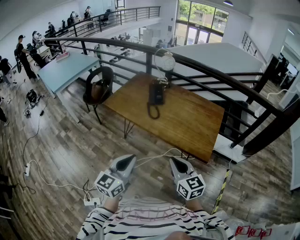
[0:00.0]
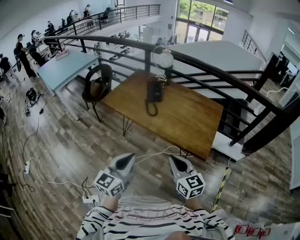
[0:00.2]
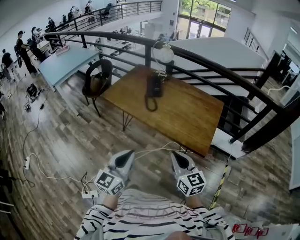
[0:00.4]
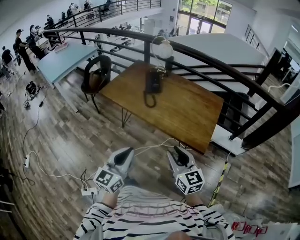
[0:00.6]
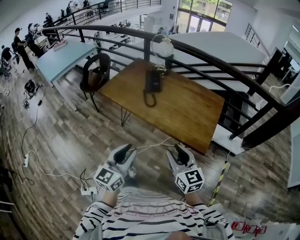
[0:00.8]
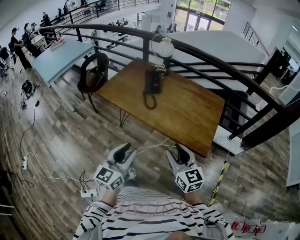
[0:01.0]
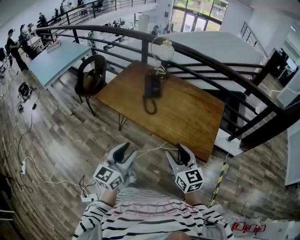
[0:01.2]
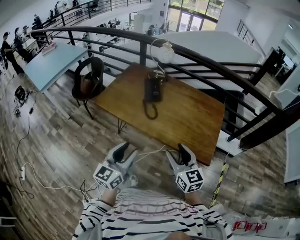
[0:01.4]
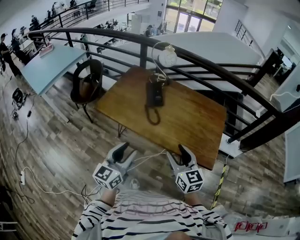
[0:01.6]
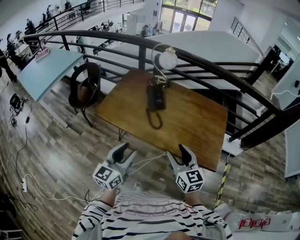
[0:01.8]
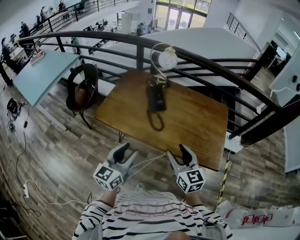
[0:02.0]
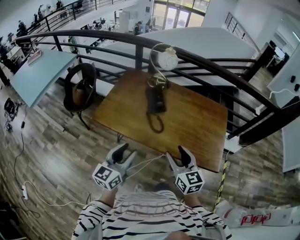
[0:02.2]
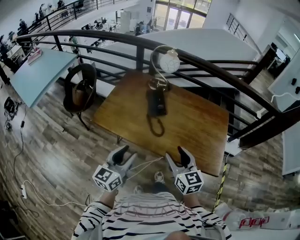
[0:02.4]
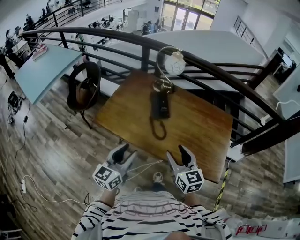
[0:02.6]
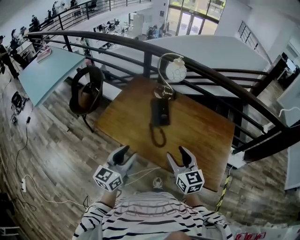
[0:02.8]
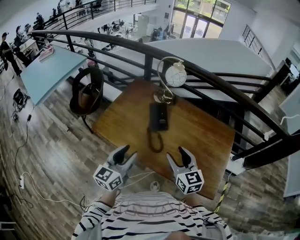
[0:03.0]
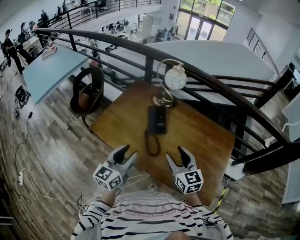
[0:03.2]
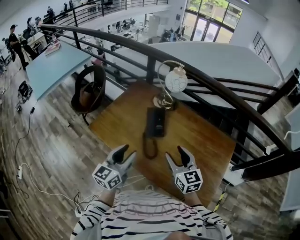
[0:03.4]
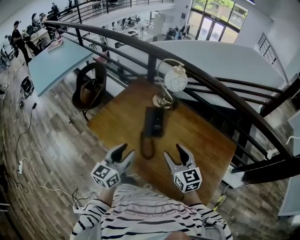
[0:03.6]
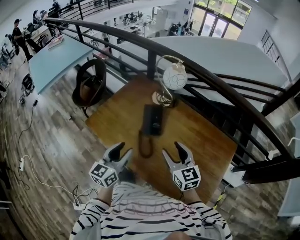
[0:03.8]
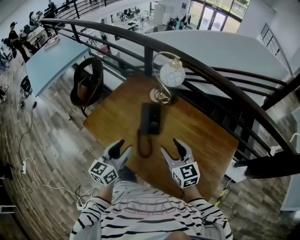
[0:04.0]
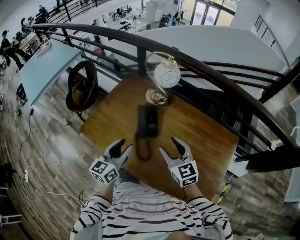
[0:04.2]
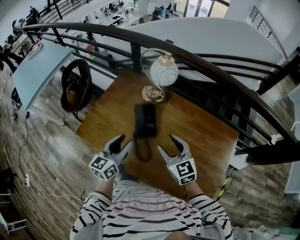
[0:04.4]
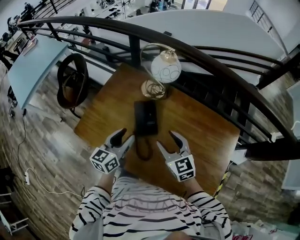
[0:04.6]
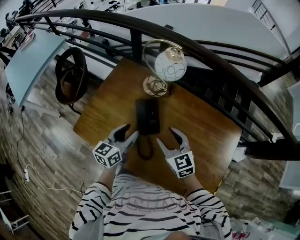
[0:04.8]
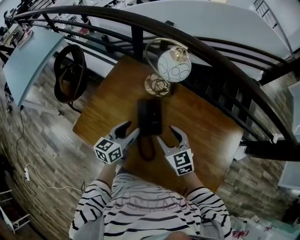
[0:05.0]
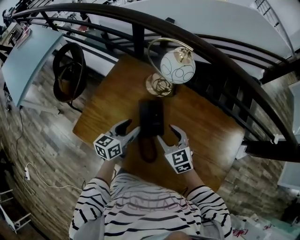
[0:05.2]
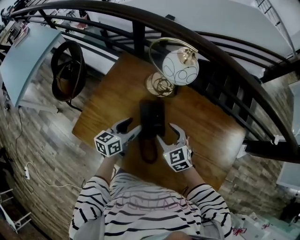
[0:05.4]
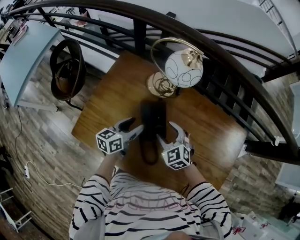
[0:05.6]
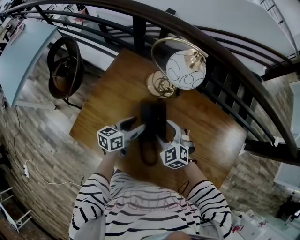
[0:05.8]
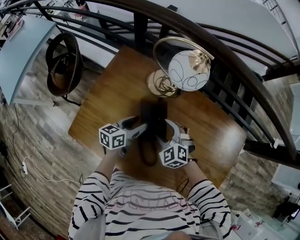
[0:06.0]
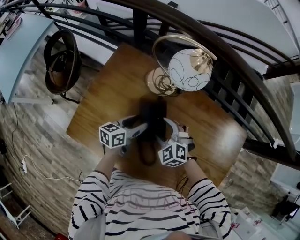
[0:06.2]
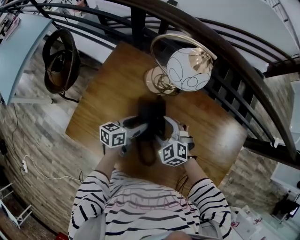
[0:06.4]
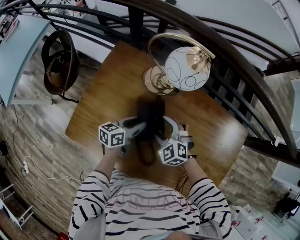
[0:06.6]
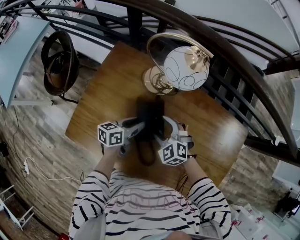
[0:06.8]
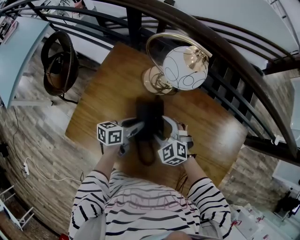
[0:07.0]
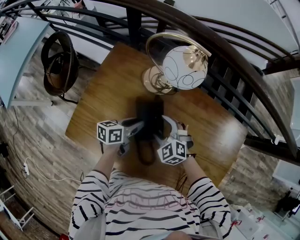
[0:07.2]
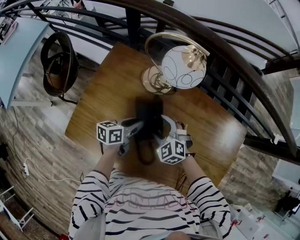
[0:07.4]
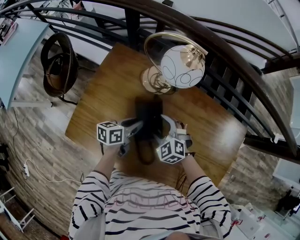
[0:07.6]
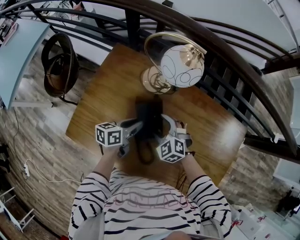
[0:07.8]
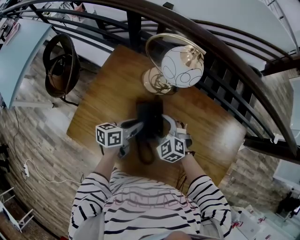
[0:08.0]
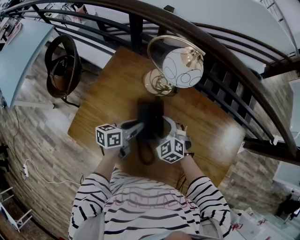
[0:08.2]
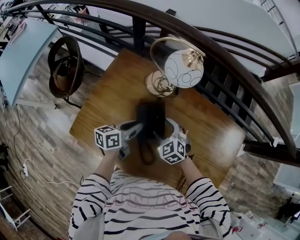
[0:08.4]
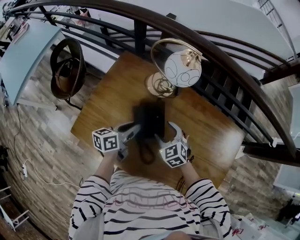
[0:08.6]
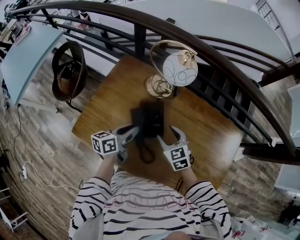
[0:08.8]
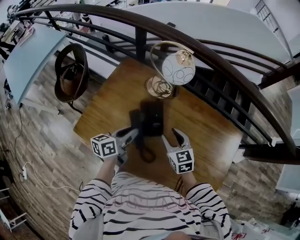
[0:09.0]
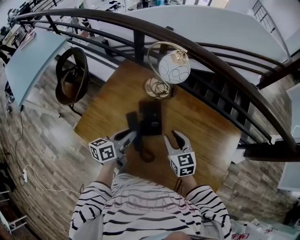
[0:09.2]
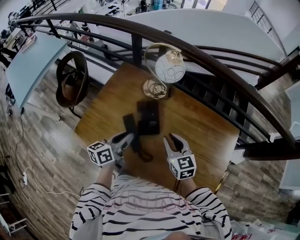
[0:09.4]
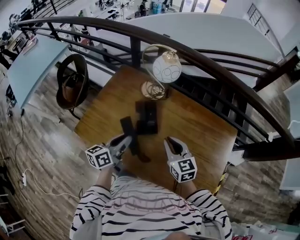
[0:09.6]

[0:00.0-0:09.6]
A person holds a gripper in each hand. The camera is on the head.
0:00.0 to 0:01.6: Both grippers move forward, some 20 cm. The right gripper opens; the left gripper opens.
0:01.6 to 0:03.2: The grippers both shift forward by roughly 25 cm.
0:03.2 to 0:04.8: The two grippers go some 20 cm forward and downward.
0:04.8 to 0:06.4: The left gripper goes roughly 20 cm downward and forward, and turns by roughly 30 degrees. Meanwhile the right gripper shifts about 20 cm downward, forward and to the left, and changes its angle by approximately 40 degrees.
0:06.4 to 0:08.0: The left gripper closes up.
0:08.0 to 0:09.6: The left gripper travels backward and upward by approximately 20 cm, and rotates about 20 degrees, while the right gripper is displaced upward, backward and to the right by about 25 cm, changes its angle by roughly 50 degrees, and closes its fingers.

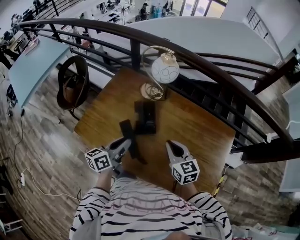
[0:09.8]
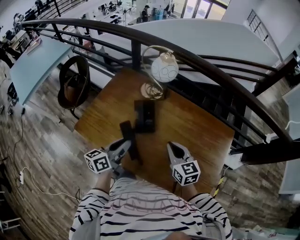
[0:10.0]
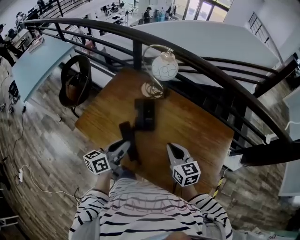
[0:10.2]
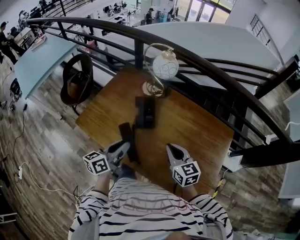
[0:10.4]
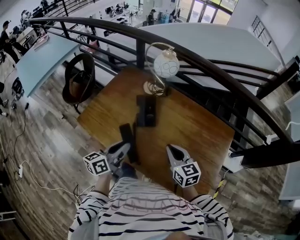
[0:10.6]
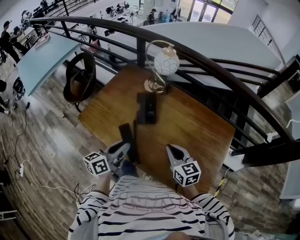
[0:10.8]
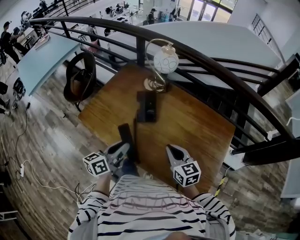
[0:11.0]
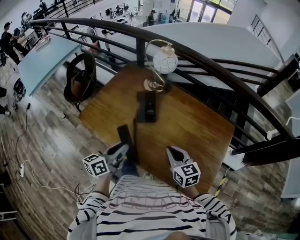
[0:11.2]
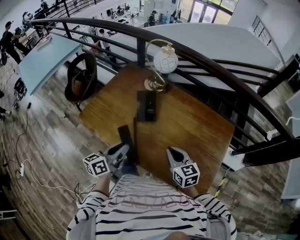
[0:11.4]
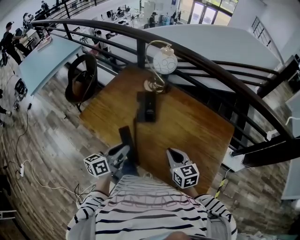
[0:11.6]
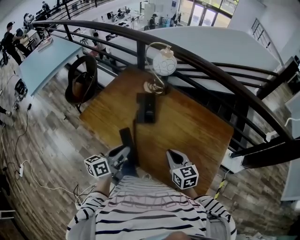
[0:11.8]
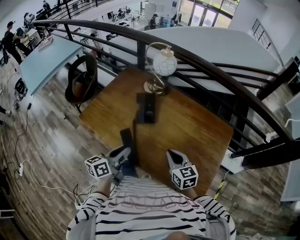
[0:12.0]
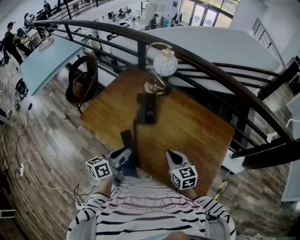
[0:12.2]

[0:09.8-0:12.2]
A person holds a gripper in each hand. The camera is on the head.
0:09.8 to 0:11.0: The two grippers go about 10 cm backward.
0:11.0 to 0:12.2: There are only small adjustments of the grippers.

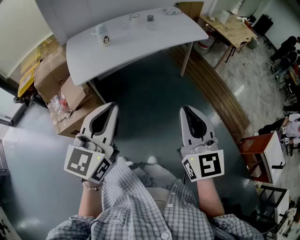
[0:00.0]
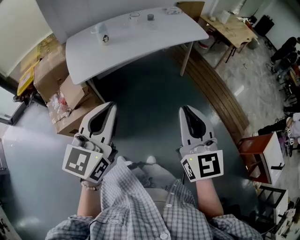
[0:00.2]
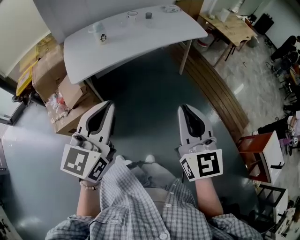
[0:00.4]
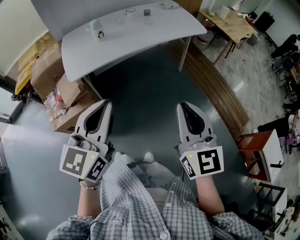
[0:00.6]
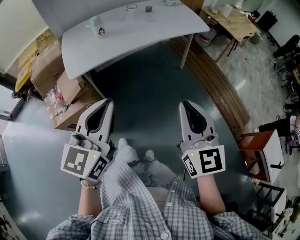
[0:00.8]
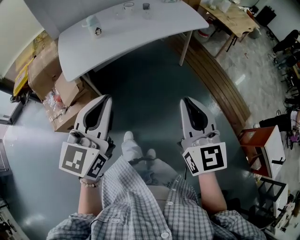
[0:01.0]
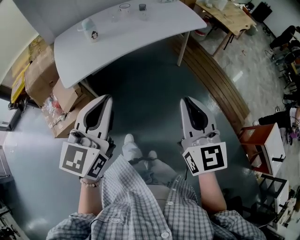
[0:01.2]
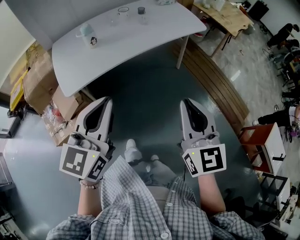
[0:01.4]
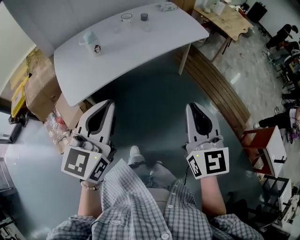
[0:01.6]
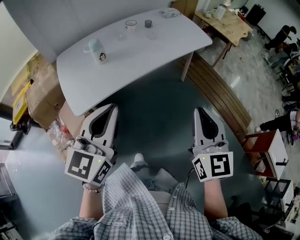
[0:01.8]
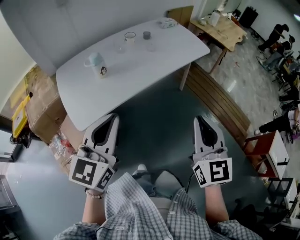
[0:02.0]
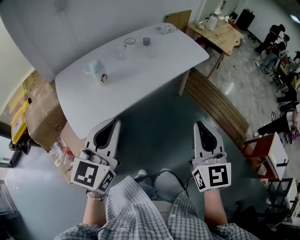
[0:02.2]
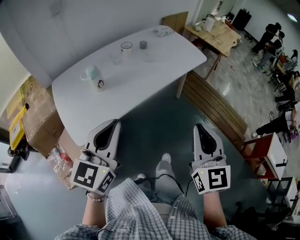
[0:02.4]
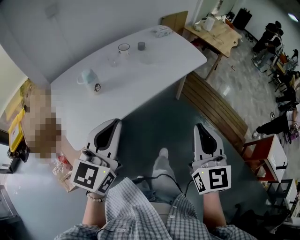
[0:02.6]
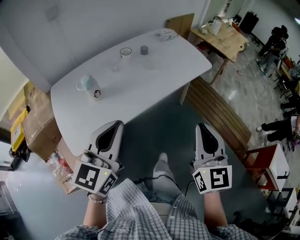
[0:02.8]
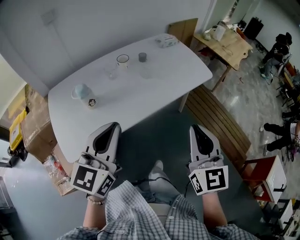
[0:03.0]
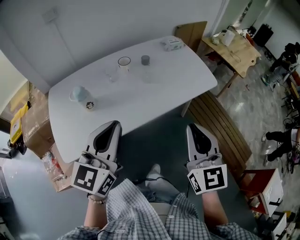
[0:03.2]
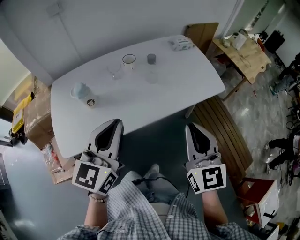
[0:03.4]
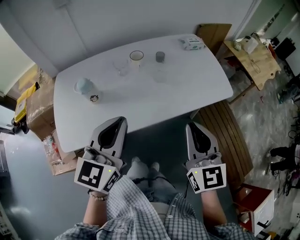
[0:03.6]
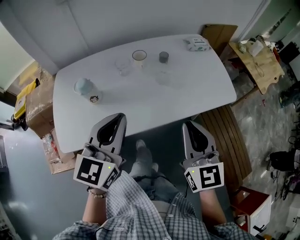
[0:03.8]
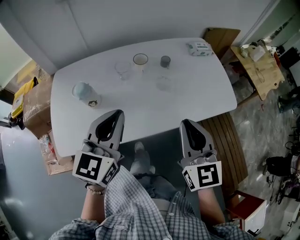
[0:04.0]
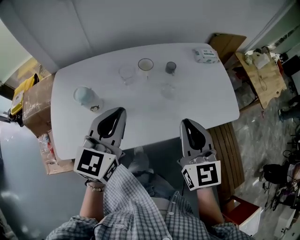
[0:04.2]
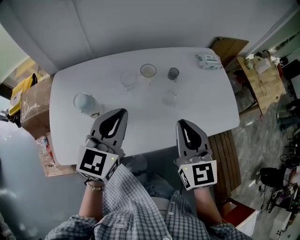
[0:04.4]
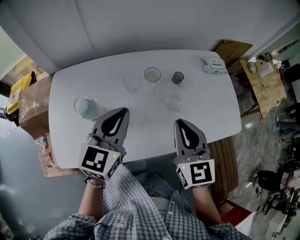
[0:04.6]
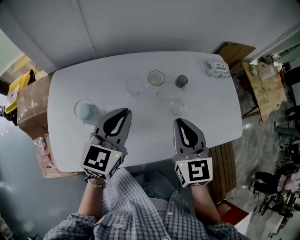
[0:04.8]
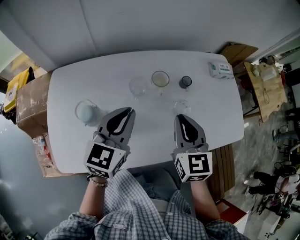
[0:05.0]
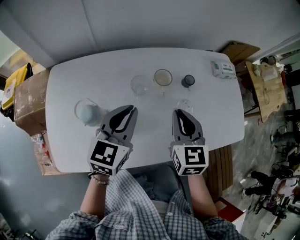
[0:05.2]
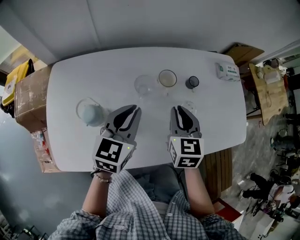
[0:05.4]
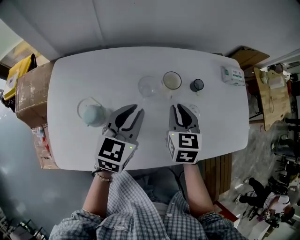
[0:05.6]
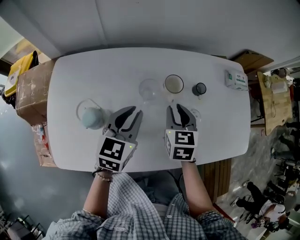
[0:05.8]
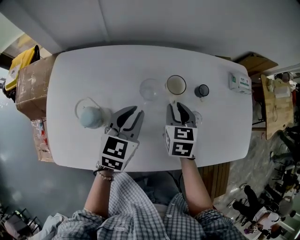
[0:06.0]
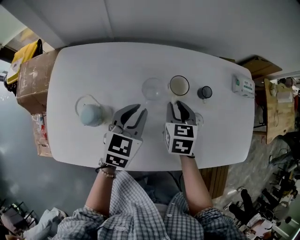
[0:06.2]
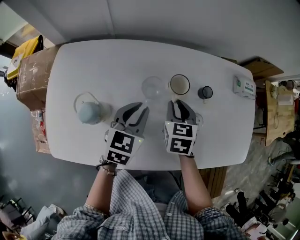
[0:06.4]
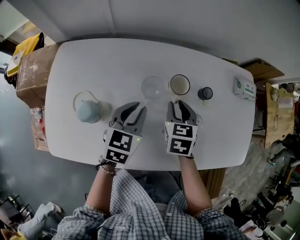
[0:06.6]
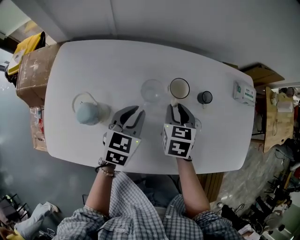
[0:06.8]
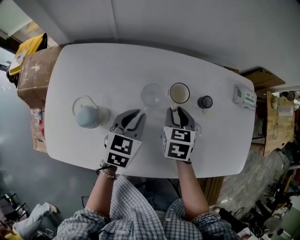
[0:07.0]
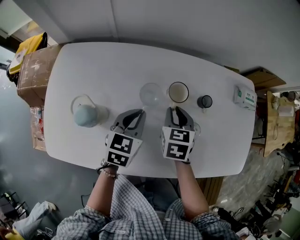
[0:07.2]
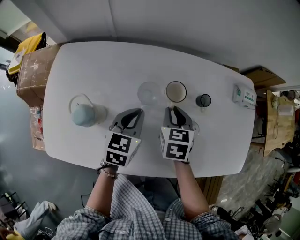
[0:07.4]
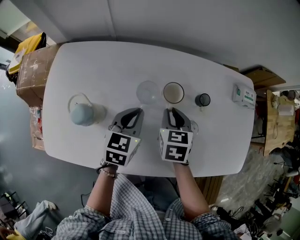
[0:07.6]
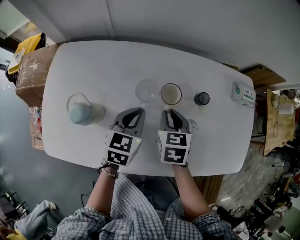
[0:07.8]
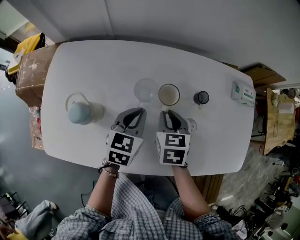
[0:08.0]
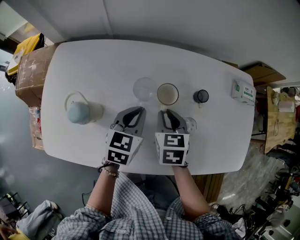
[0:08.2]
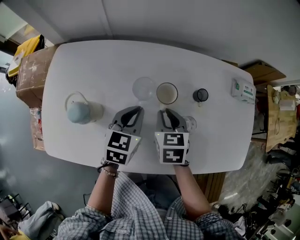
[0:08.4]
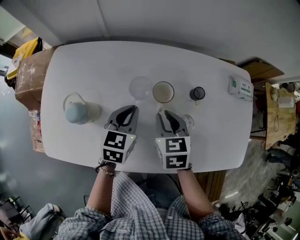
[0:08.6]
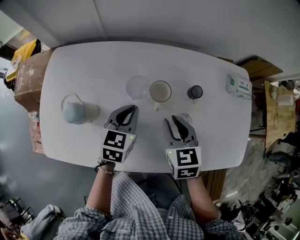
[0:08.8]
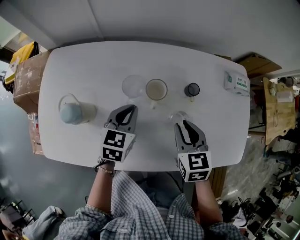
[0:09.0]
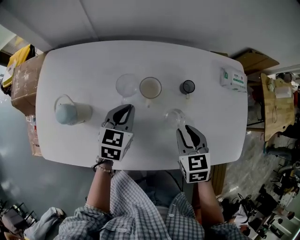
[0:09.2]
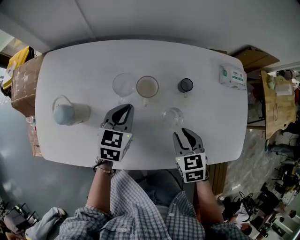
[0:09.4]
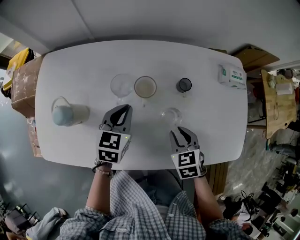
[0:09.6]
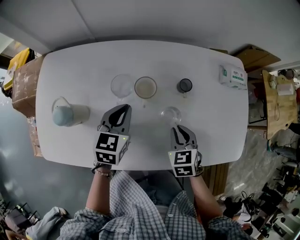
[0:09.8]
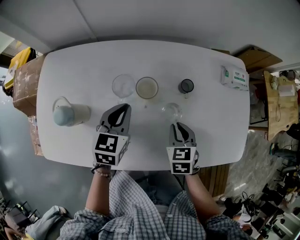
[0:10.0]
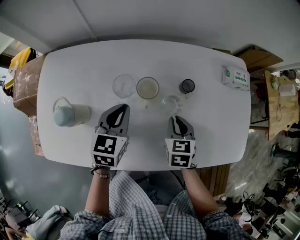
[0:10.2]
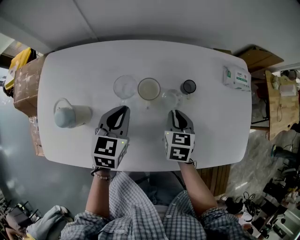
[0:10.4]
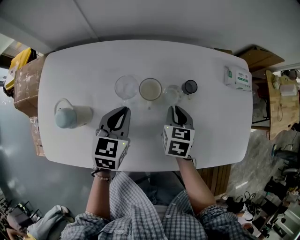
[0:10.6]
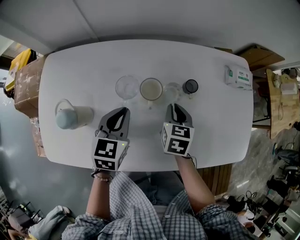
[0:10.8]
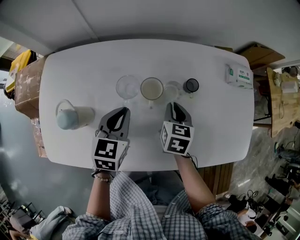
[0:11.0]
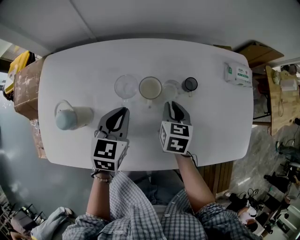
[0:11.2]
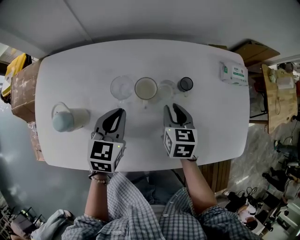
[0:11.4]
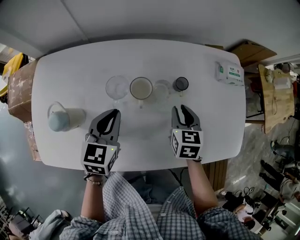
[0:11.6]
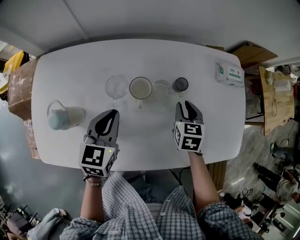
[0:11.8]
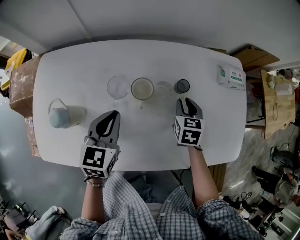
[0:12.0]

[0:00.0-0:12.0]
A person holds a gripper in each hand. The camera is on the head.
0:00.0 to 0:01.6: Both grippers travel together forward, approximately 15 cm.
0:01.6 to 0:03.0: Both grippers travel together forward, approximately 20 cm.
0:03.0 to 0:04.4: The two grippers go roughly 25 cm forward. The right gripper turns by some 30 degrees.
0:04.4 to 0:06.0: The right gripper is displaced downward, forward and to the left by about 30 cm, and turns by roughly 30 degrees, while the left gripper travels downward and forward by some 20 cm, and turns by some 20 degrees.
0:06.0 to 0:07.6: The left gripper shifts by about 5 cm.
0:07.6 to 0:09.0: The right gripper heads to the right and backward, covering roughly 10 cm.
0:09.0 to 0:10.4: The right gripper moves downward, some 5 cm.
0:10.4 to 0:12.0: The right gripper moves forward and to the right, some 10 cm.
